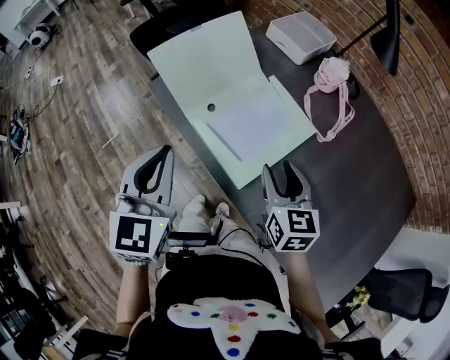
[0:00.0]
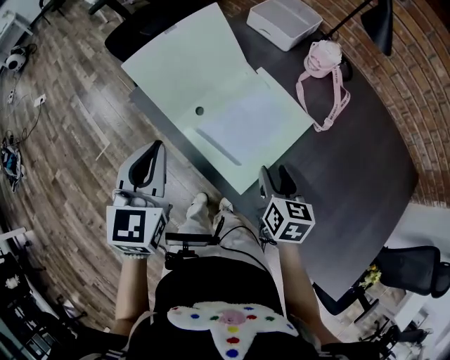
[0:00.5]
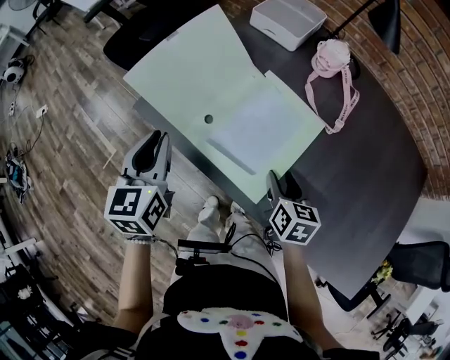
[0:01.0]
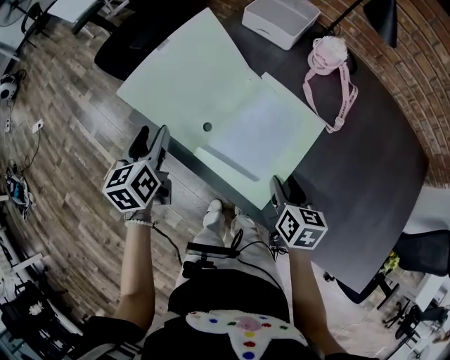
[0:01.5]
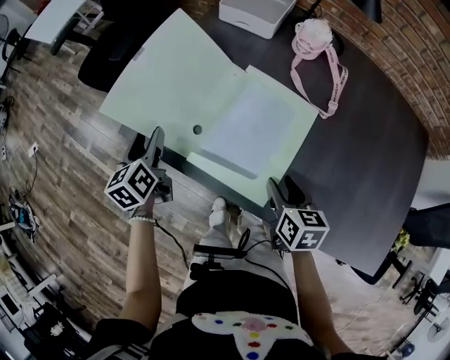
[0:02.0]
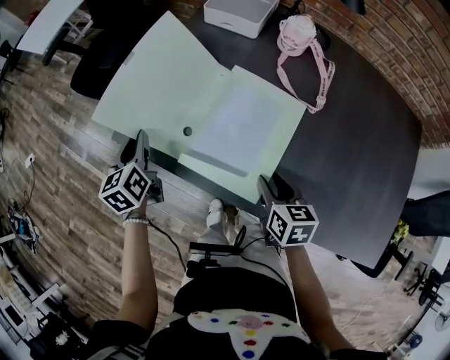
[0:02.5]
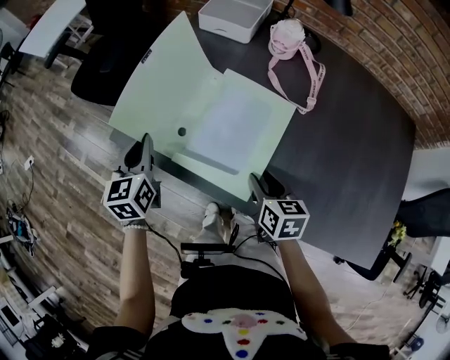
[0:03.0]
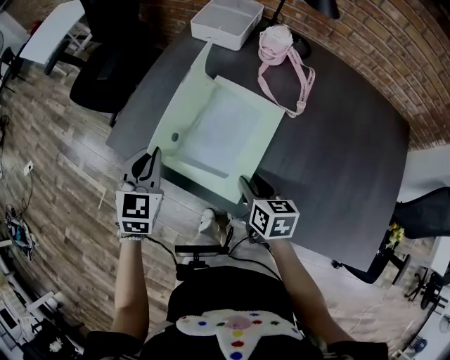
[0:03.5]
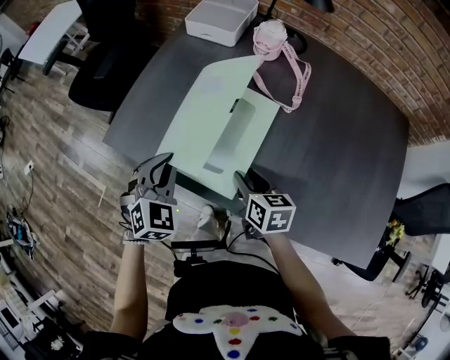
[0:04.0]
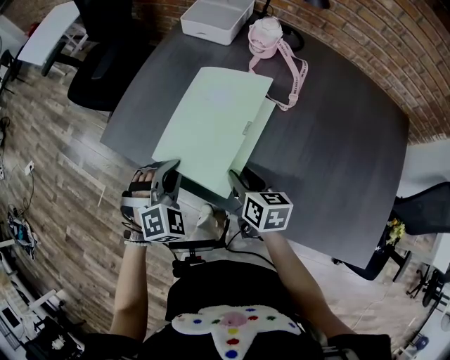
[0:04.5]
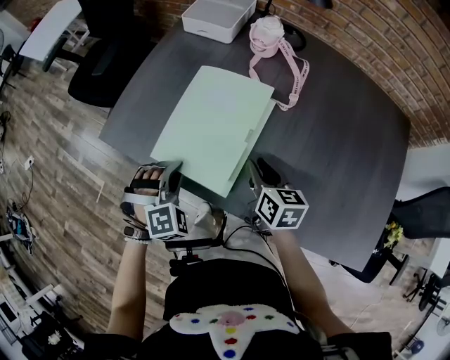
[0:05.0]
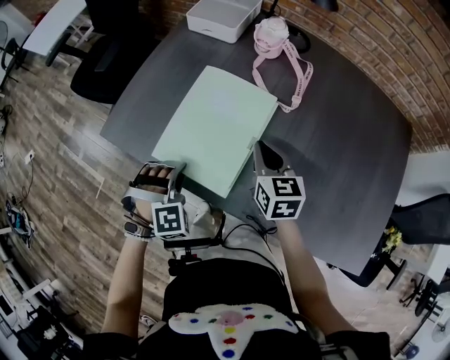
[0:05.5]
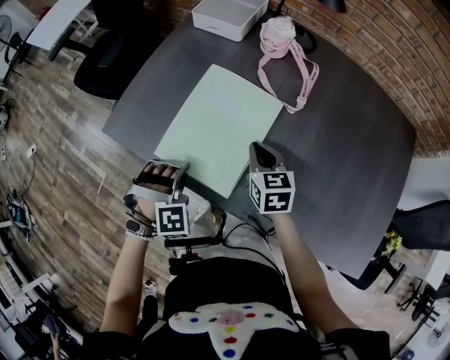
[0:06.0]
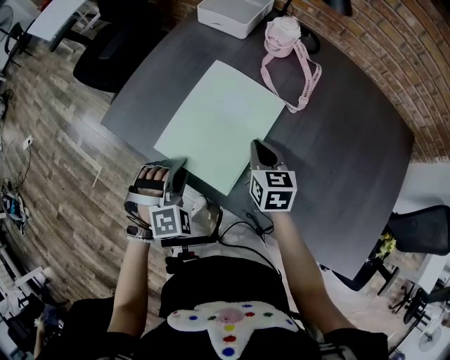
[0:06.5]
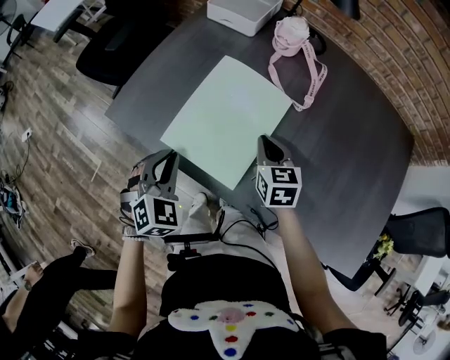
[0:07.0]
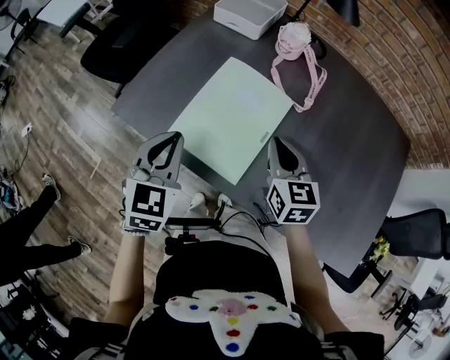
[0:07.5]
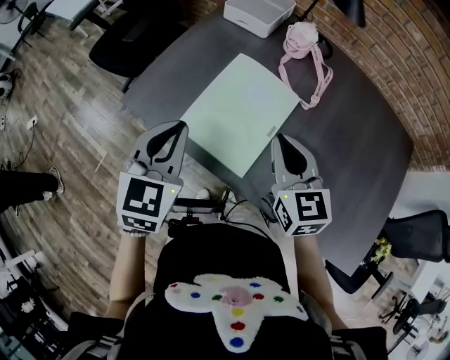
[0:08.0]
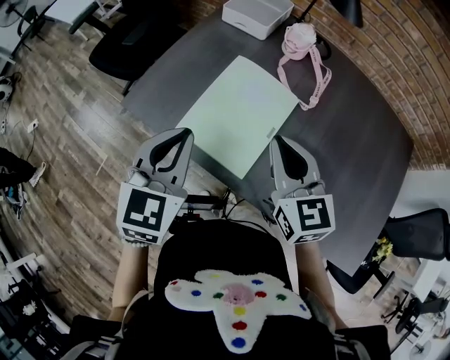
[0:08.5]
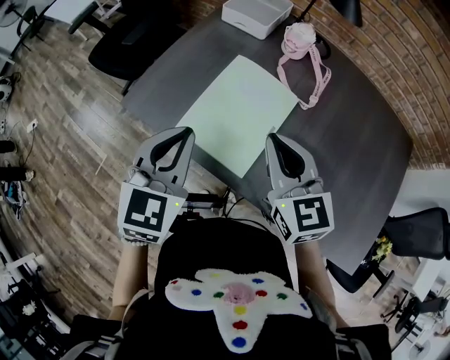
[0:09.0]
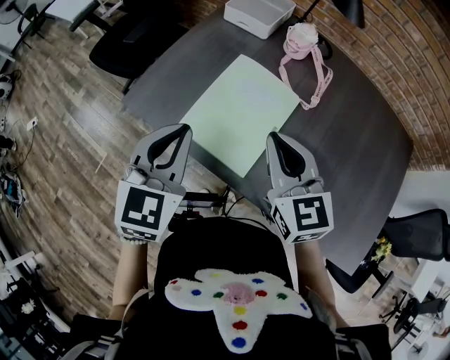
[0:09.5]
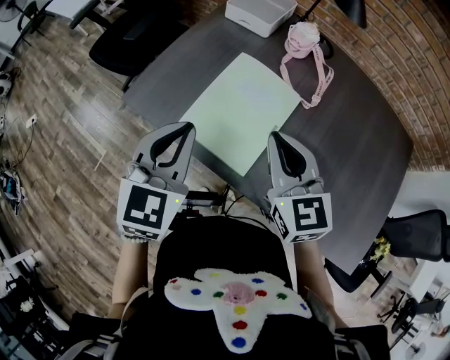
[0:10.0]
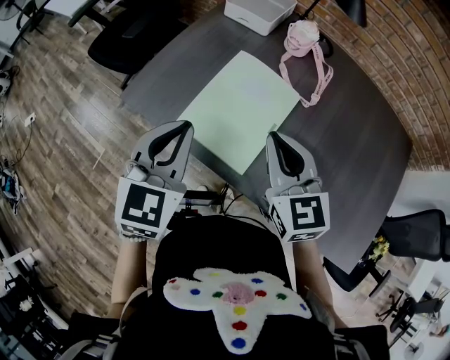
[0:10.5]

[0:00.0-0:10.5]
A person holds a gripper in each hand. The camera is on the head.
0:00.0 to 0:02.0: The right gripper shifts approximately 10 cm downward, and rotates some 30 degrees. The left gripper goes approximately 30 cm forward, downward and to the left, changes its angle by approximately 30 degrees, and opens.
0:02.0 to 0:04.0: The left gripper goes some 20 cm to the right and backward, rotates around the line of its fingers by roughly 70 degrees, clockwise from behind, and closes its fingers.
0:04.0 to 0:06.5: The left gripper heads downward, covering about 5 cm, and changes its angle by roughly 30 degrees; the right gripper goes approximately 5 cm forward, and closes up.
0:06.5 to 0:08.5: The grippers both shift upward by about 20 cm. The left gripper twists some 60 degrees counterclockwise, seen from behind. The right gripper swivels roughly 20 degrees.
0:08.5 to 0:10.5: There are only small adjustments of the grippers.

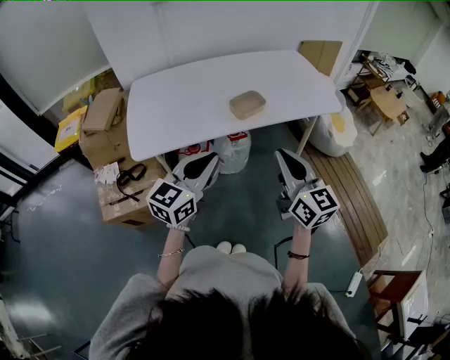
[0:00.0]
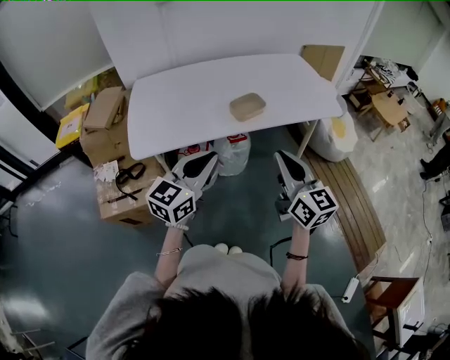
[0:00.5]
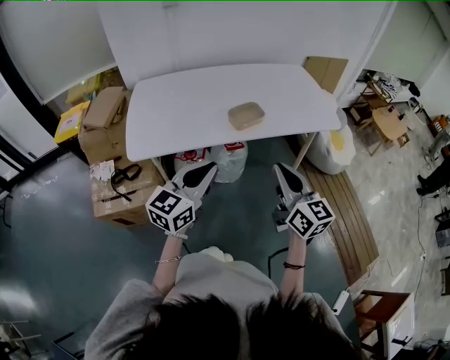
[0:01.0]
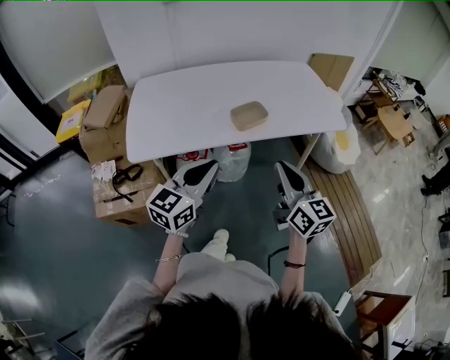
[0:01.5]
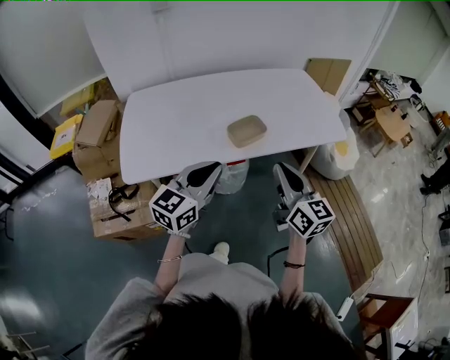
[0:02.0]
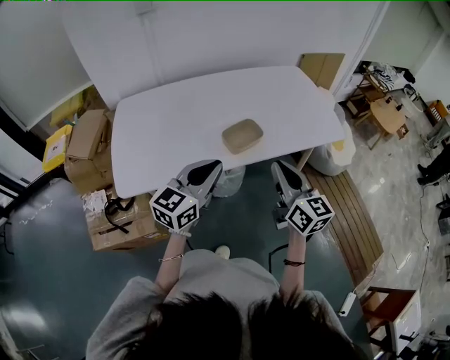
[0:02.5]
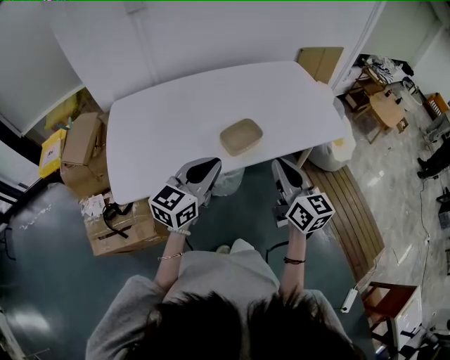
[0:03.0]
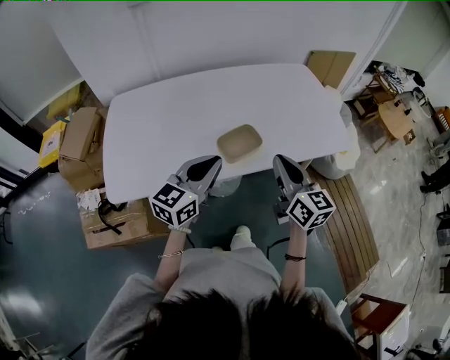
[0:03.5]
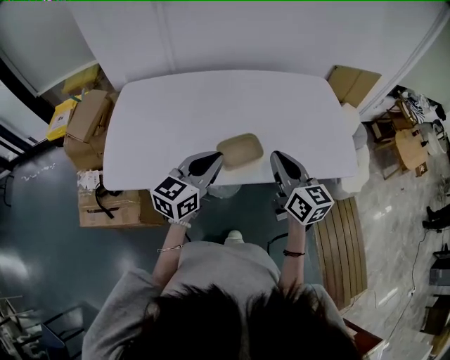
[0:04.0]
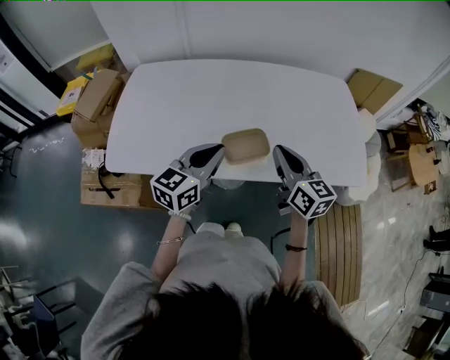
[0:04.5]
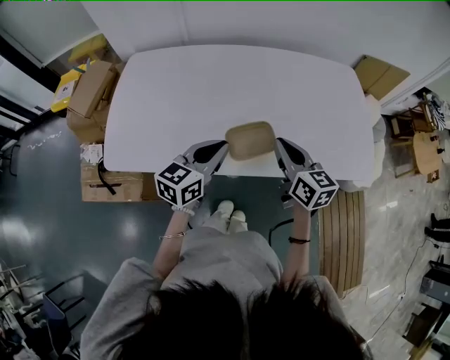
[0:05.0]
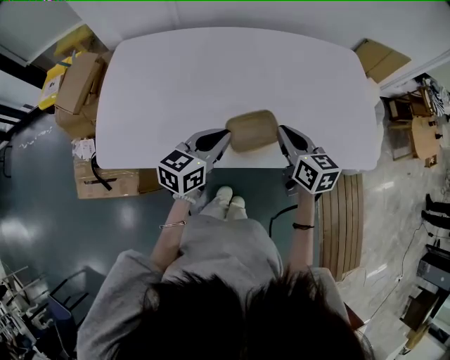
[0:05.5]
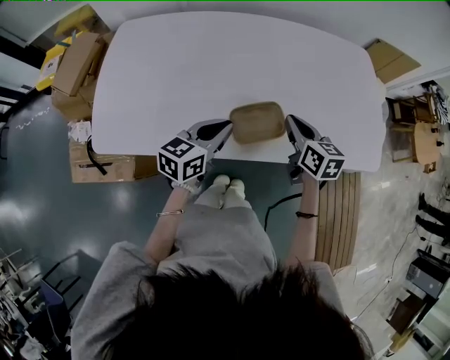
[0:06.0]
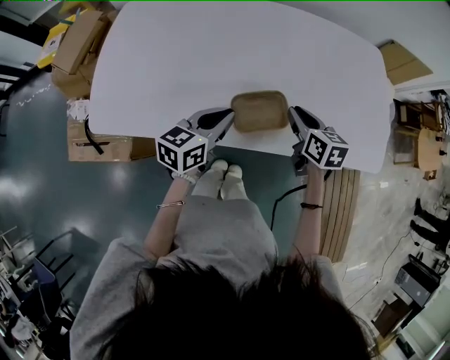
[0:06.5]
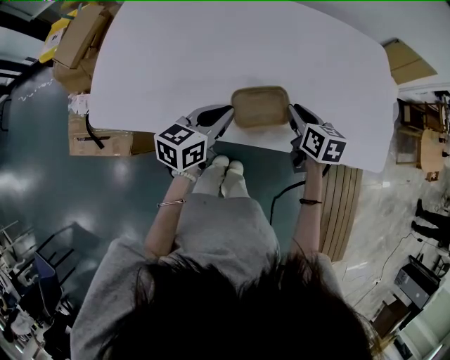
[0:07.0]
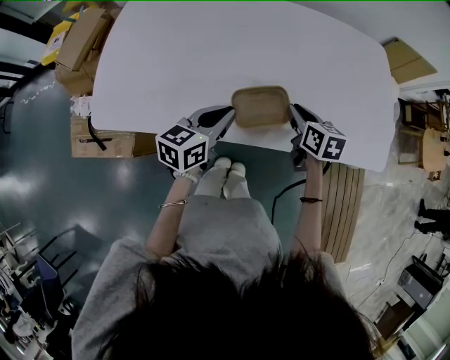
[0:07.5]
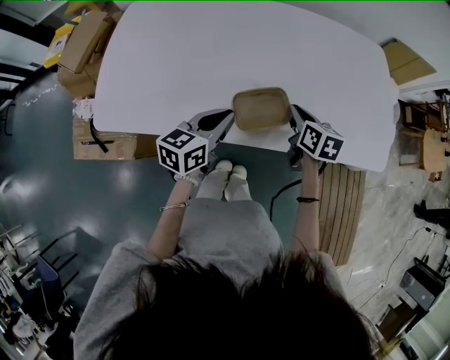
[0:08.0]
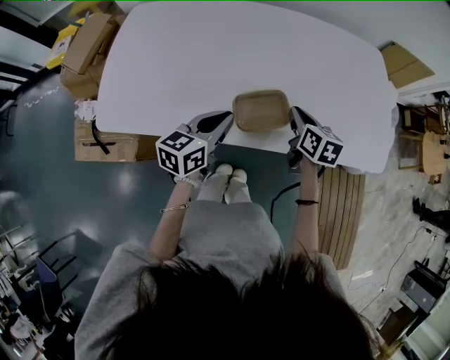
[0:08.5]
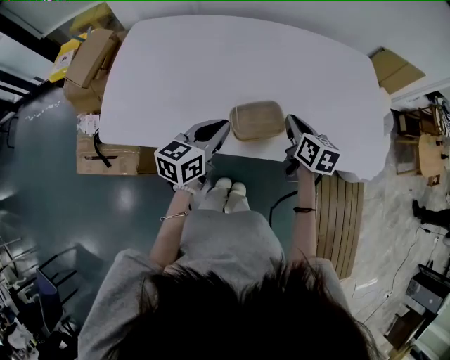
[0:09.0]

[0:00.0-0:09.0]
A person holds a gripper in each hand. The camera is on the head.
0:00.0 to 0:02.0: Both grippers travel together forward, approximately 10 cm.
0:02.0 to 0:04.5: Both grippers move forward, some 20 cm. The right gripper turns by roughly 20 degrees.
0:04.5 to 0:07.0: The left gripper moves downward, roughly 10 cm; the right gripper is displaced downward and forward by some 20 cm, and tilts its fingers about 30 degrees downward.
0:07.0 to 0:09.0: The grippers move only a little.

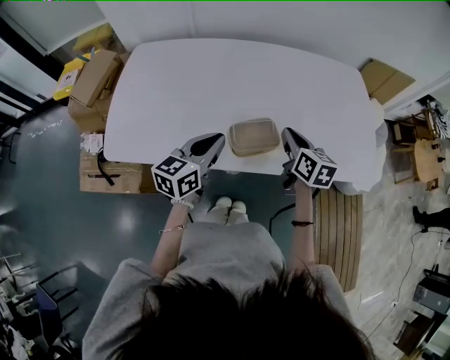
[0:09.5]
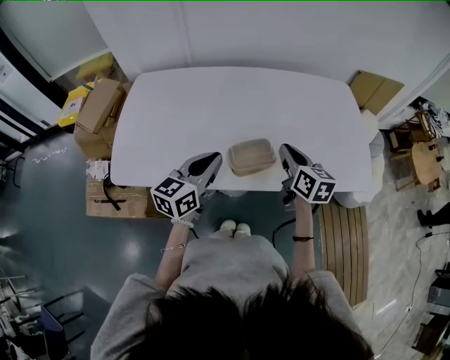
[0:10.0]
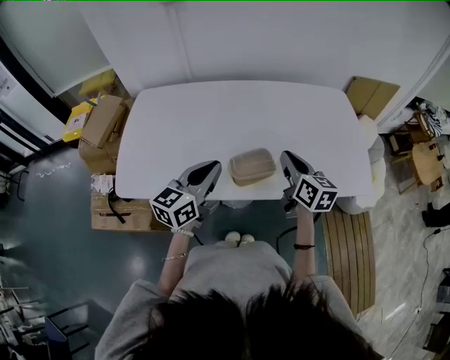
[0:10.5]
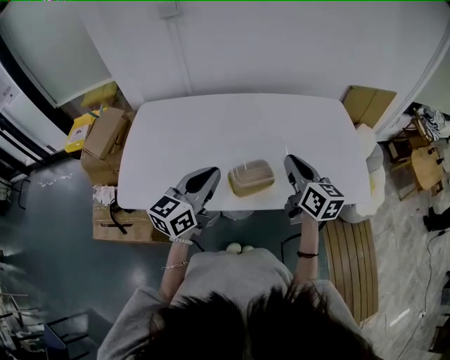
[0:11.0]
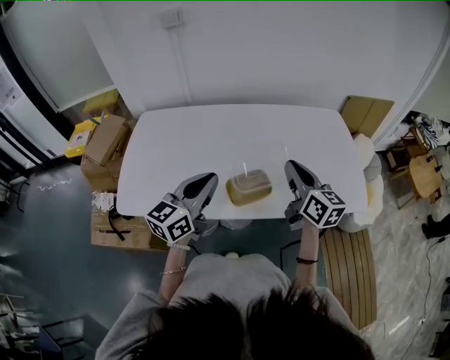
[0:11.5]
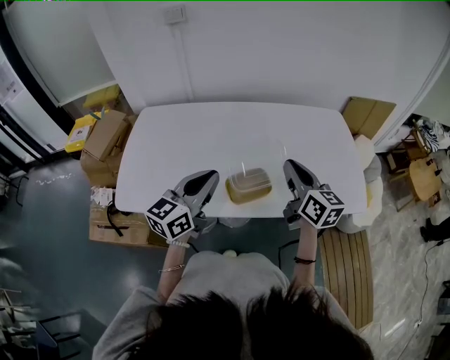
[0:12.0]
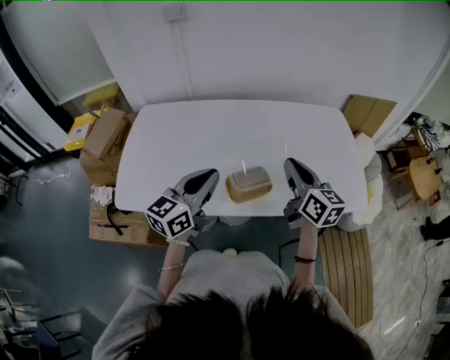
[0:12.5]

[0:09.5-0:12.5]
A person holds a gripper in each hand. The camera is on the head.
0:09.5 to 0:11.0: The two grippers go approximately 10 cm upward.
0:11.0 to 0:12.5: The grippers move only a little.

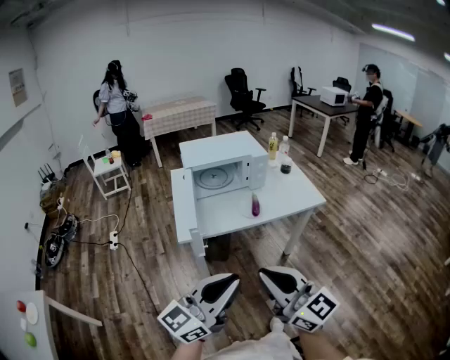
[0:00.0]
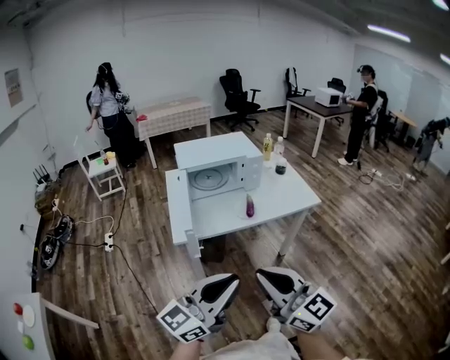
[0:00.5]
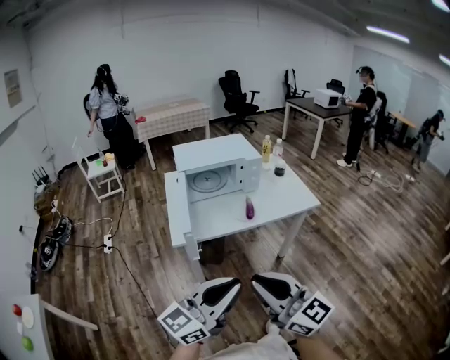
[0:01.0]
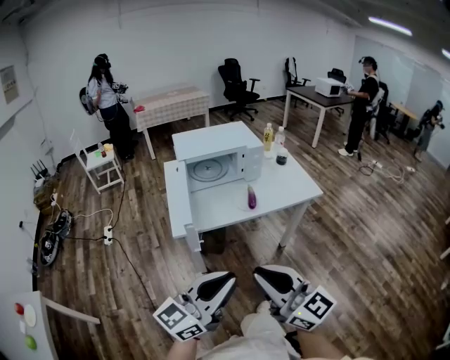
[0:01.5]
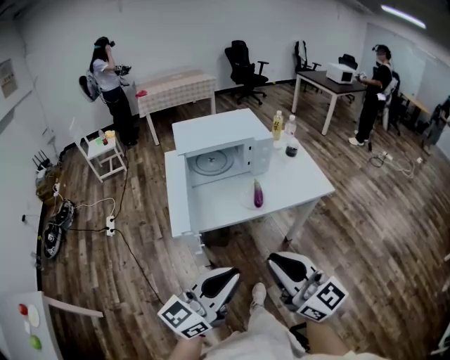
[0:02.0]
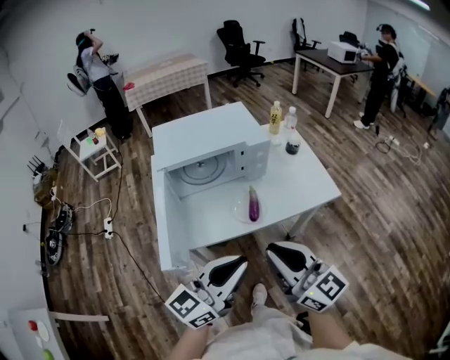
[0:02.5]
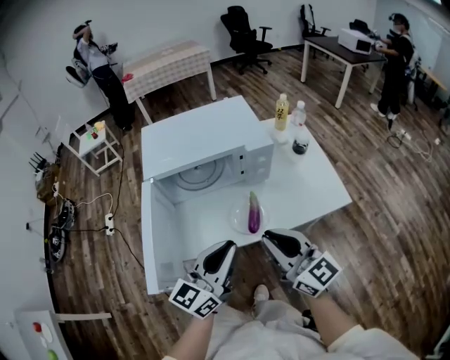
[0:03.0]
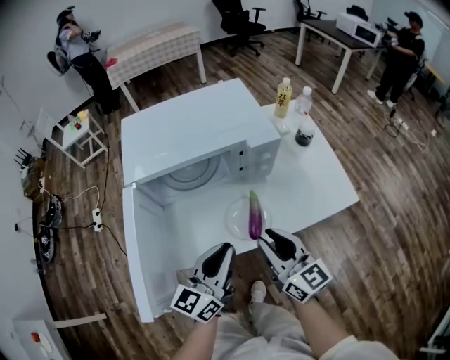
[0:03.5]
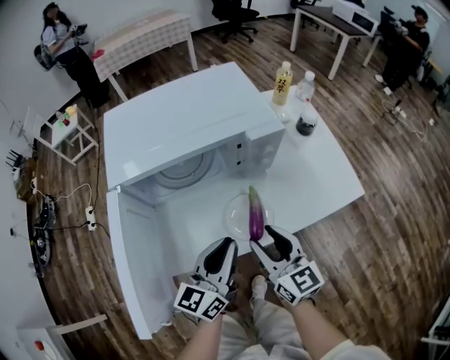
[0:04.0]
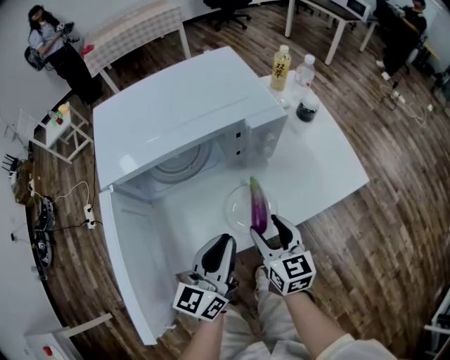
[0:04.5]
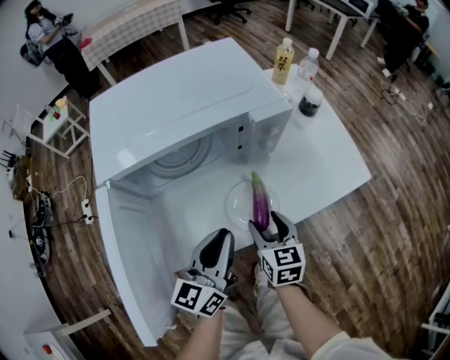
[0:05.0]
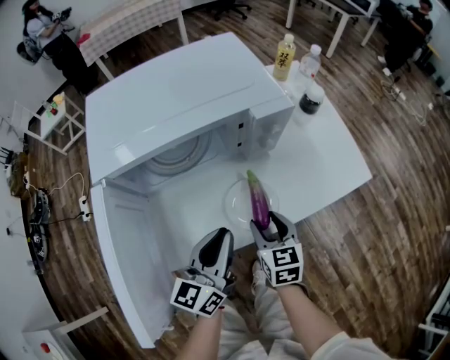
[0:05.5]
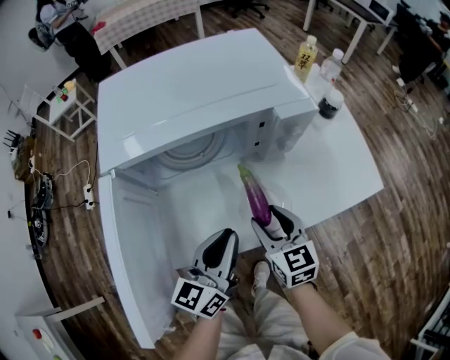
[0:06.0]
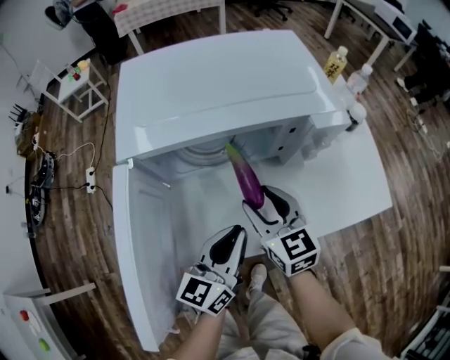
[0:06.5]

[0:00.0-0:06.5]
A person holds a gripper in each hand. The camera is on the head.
0:00.0 to 0:02.0: Both grippers move forward, some 10 cm.
0:02.0 to 0:04.5: Both grippers travel together forward and downward, approximately 40 cm. The right gripper tips its fingers downward by about 30 degrees, and opens; the left gripper swivels roughly 20 degrees.
0:04.5 to 0:06.5: The right gripper heads to the left and forward, covering about 15 cm, and turns by about 20 degrees, while the left gripper moves some 5 cm.
